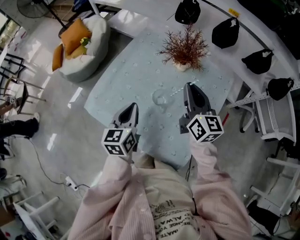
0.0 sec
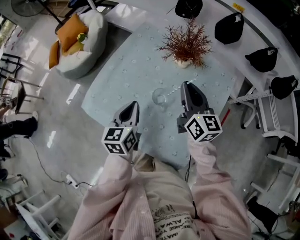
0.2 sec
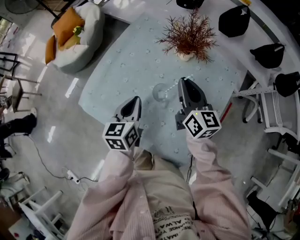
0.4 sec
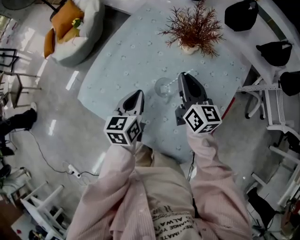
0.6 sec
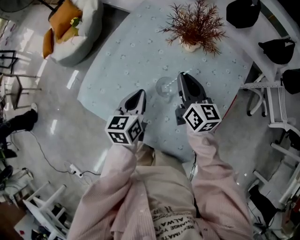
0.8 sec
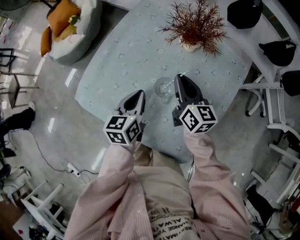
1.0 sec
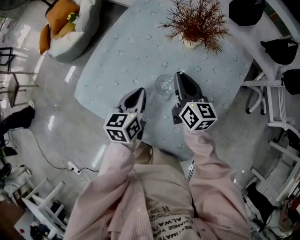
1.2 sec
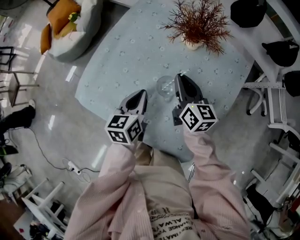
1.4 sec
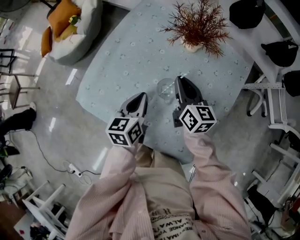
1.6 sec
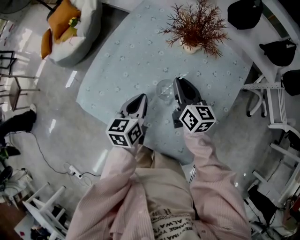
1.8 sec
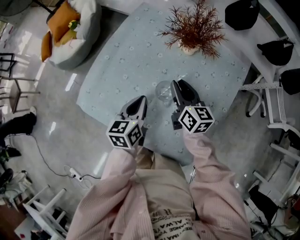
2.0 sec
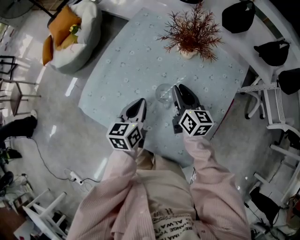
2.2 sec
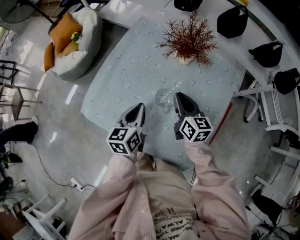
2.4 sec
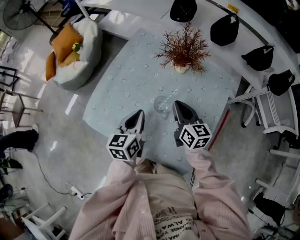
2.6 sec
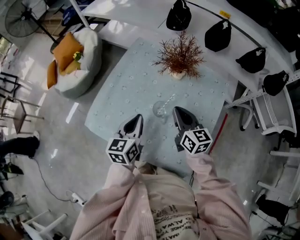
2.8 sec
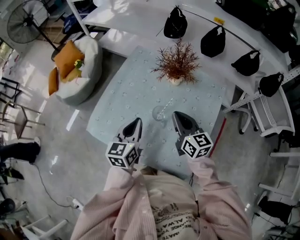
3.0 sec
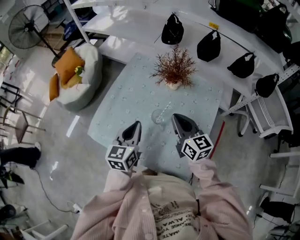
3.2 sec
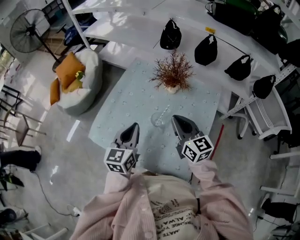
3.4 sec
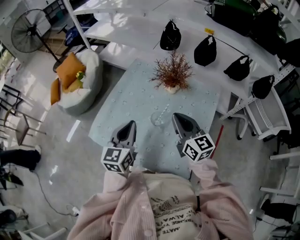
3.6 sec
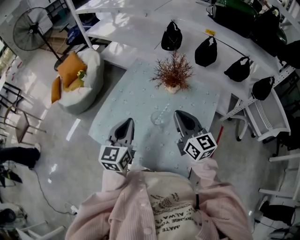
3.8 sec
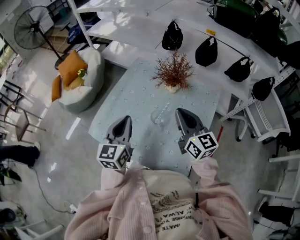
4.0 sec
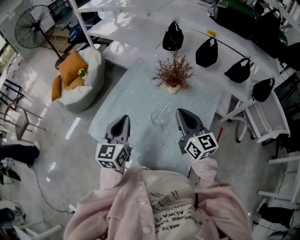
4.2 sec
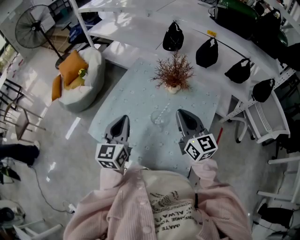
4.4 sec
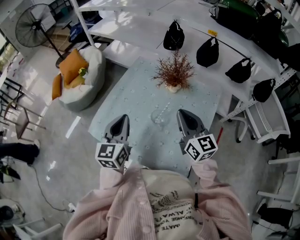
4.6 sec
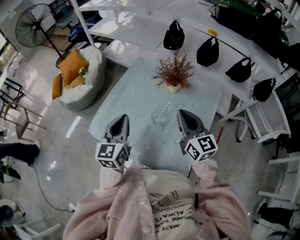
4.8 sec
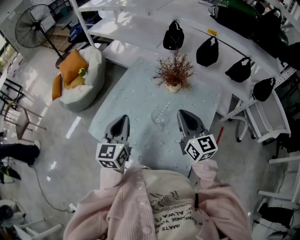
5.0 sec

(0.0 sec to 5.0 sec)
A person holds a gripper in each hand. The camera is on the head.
0.0 sec - 1.6 sec: Both grippers travel together downward, about 15 cm.
1.6 sec - 3.4 sec: The right gripper travels upward and backward by approximately 15 cm. The left gripper travels upward by some 15 cm, and turns by some 20 degrees.
3.4 sec - 5.0 sec: The left gripper changes place by approximately 5 cm.

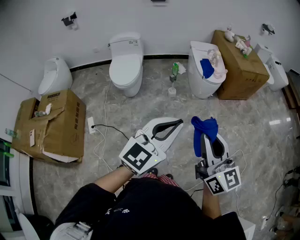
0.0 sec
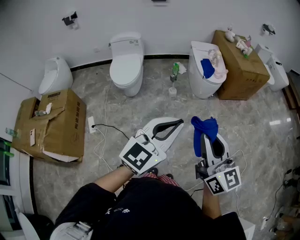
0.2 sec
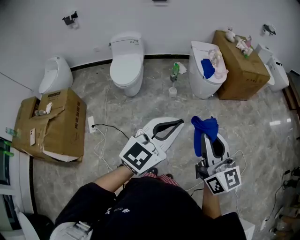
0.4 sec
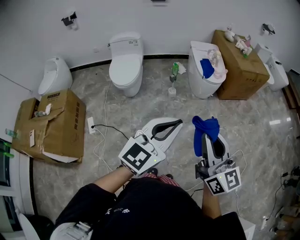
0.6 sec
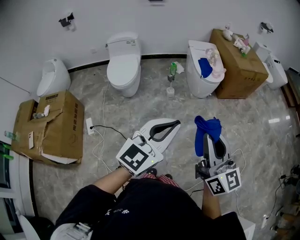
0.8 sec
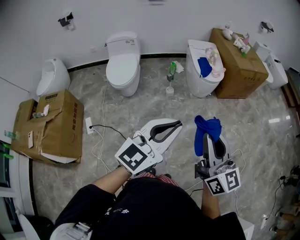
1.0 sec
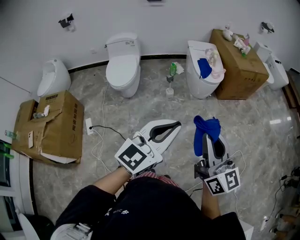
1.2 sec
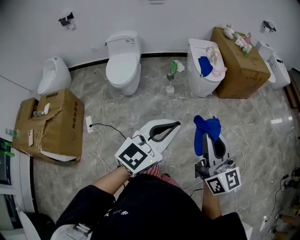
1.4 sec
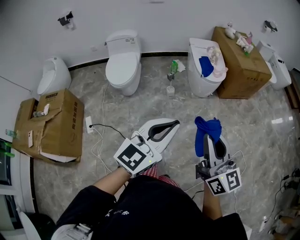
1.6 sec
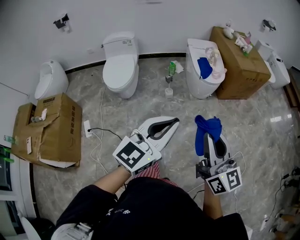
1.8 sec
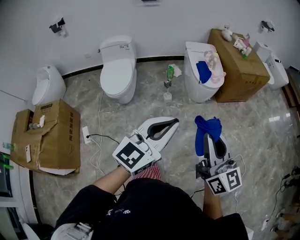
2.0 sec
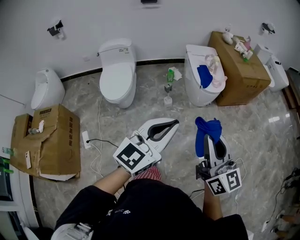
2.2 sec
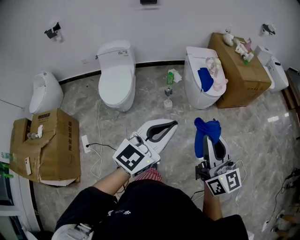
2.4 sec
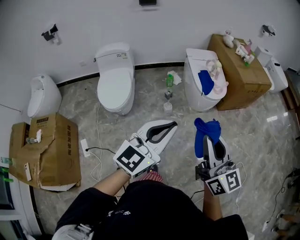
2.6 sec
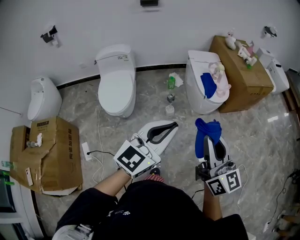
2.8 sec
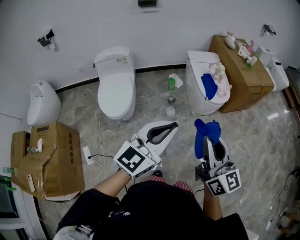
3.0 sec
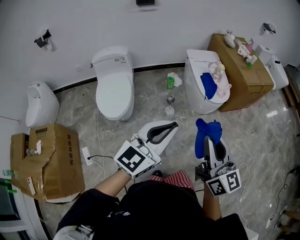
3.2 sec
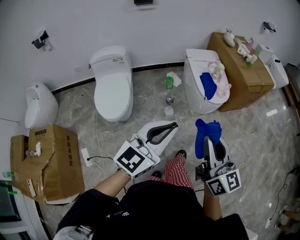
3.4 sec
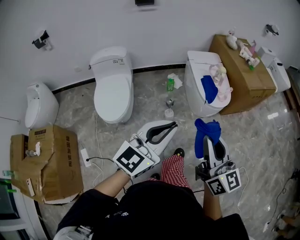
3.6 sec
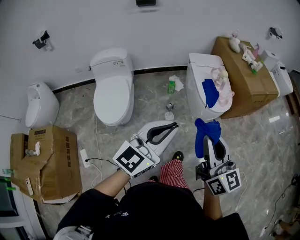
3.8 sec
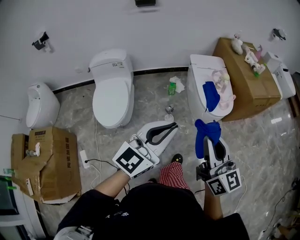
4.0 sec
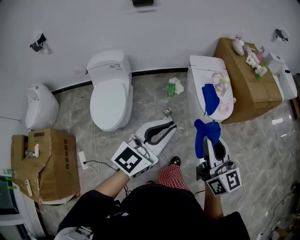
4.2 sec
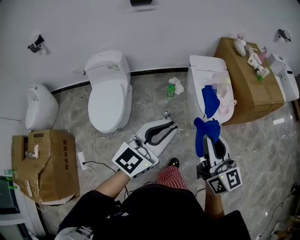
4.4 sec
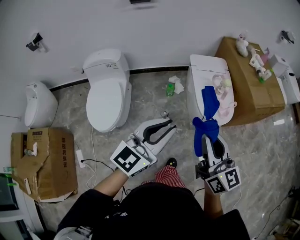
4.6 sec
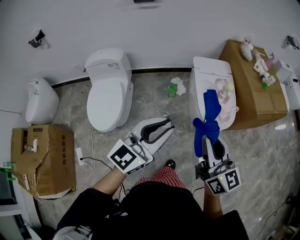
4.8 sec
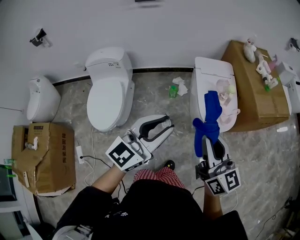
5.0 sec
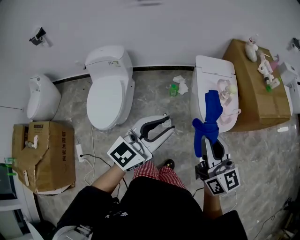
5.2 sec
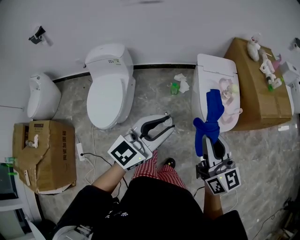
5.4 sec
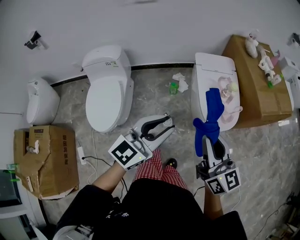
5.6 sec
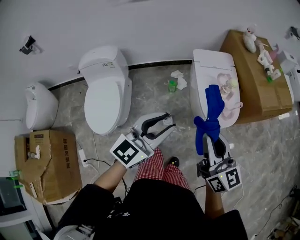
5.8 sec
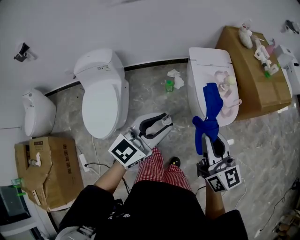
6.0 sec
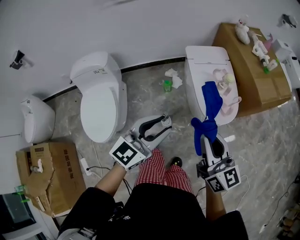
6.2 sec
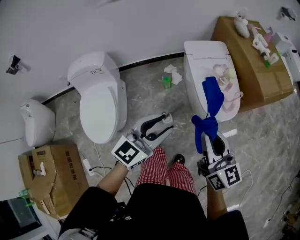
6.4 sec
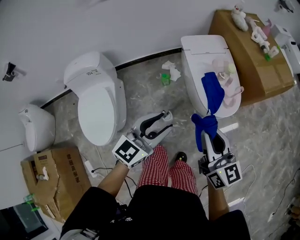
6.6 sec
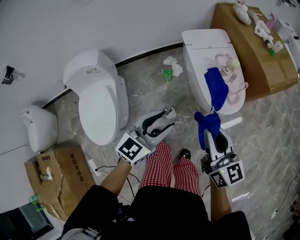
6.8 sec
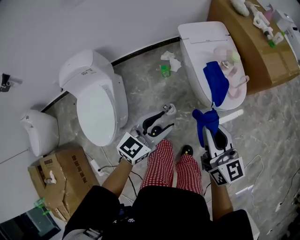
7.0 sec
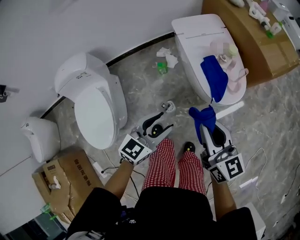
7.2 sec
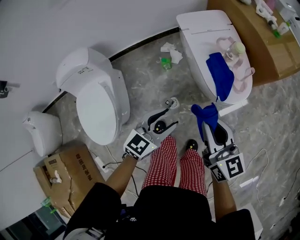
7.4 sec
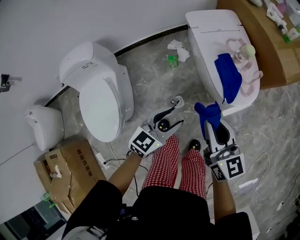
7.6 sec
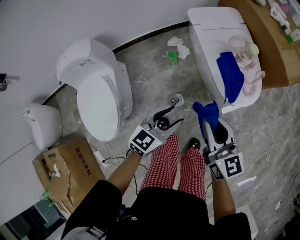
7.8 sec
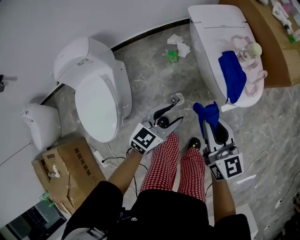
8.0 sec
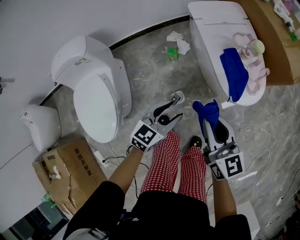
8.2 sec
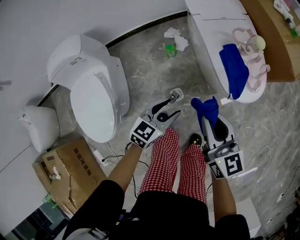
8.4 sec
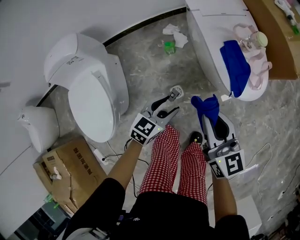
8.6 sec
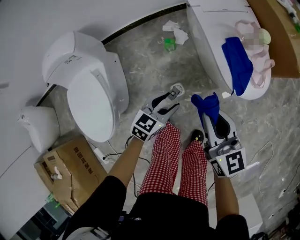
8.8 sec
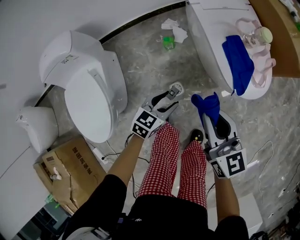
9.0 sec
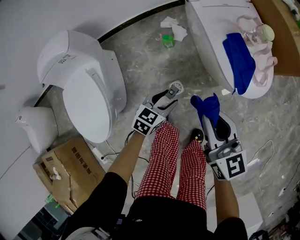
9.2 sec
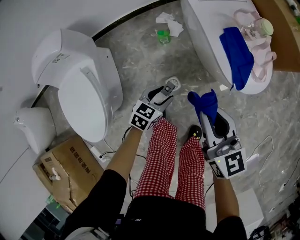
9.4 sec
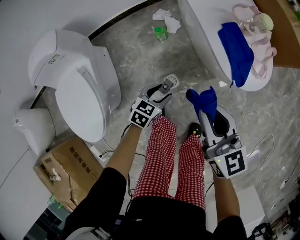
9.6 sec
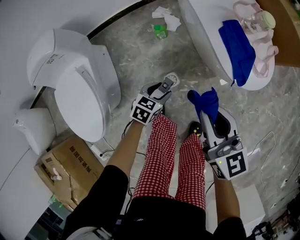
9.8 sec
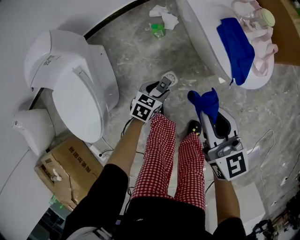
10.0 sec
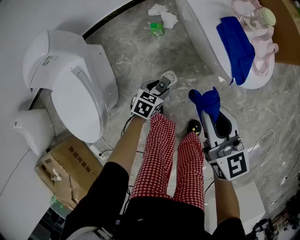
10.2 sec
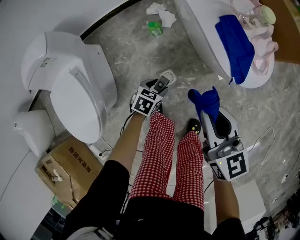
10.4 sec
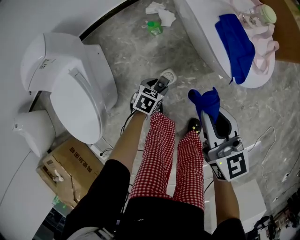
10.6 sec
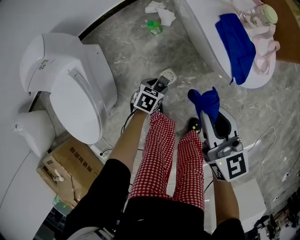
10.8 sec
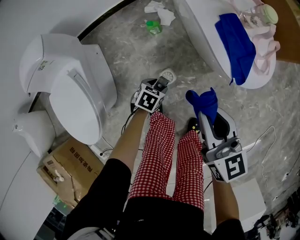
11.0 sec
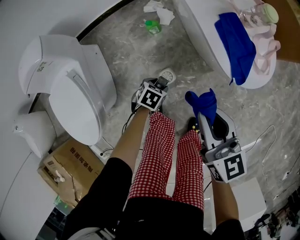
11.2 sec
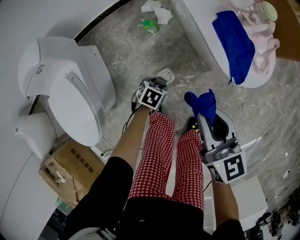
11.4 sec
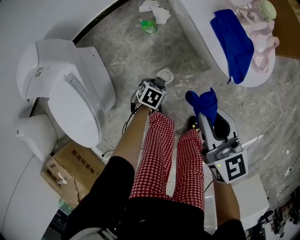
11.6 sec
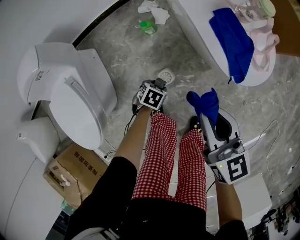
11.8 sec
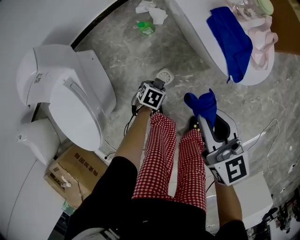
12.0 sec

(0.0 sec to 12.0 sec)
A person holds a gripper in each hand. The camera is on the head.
0.0 sec - 1.6 sec: The right gripper shifts about 5 cm to the right. The left gripper shifts by roughly 5 cm.
1.6 sec - 3.0 sec: The two grippers go about 30 cm forward and to the left.
3.0 sec - 4.4 sec: Both grippers move forward, roughly 25 cm.
4.4 sec - 6.0 sec: The left gripper is displaced forward and downward by about 15 cm, and opens up; the right gripper heads forward, covering roughly 15 cm.
6.0 sec - 7.6 sec: The right gripper travels downward and forward by approximately 15 cm; the left gripper moves downward, roughly 25 cm, and turns by roughly 20 degrees.
7.6 sec - 9.0 sec: The left gripper goes about 20 cm downward; the right gripper goes roughly 10 cm downward.
9.0 sec - 10.4 sec: The right gripper moves about 5 cm; the left gripper is displaced downward by some 15 cm, and rotates about 20 degrees.
10.4 sec - 12.0 sec: The left gripper is displaced downward by about 5 cm.

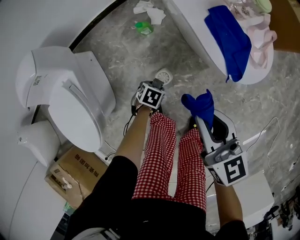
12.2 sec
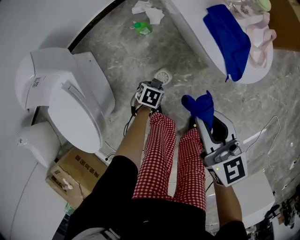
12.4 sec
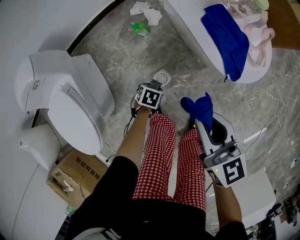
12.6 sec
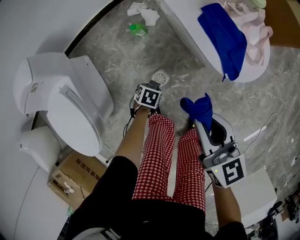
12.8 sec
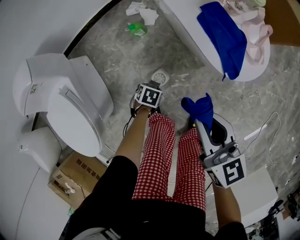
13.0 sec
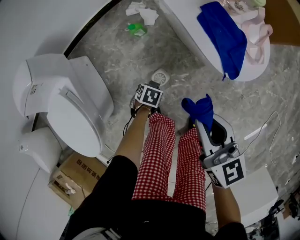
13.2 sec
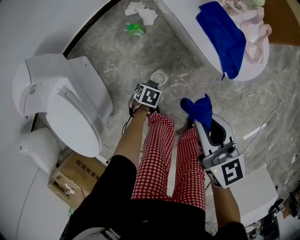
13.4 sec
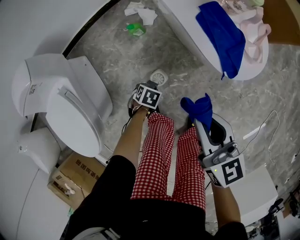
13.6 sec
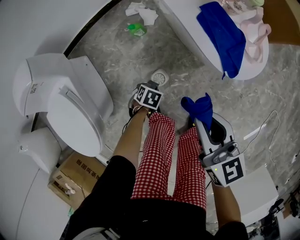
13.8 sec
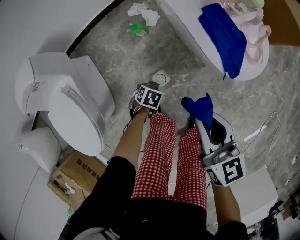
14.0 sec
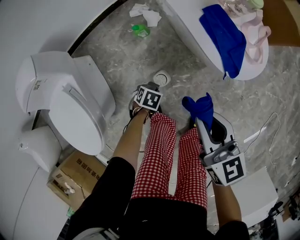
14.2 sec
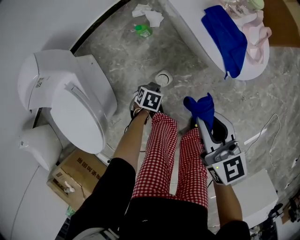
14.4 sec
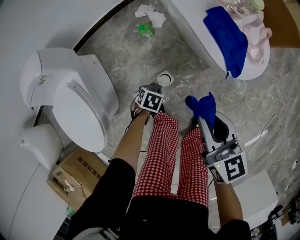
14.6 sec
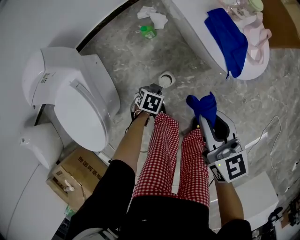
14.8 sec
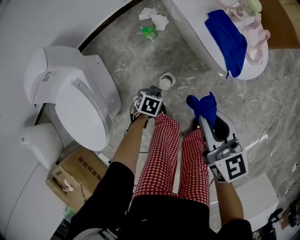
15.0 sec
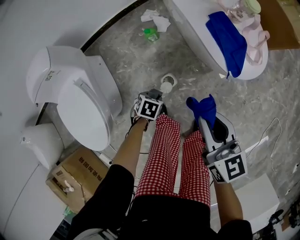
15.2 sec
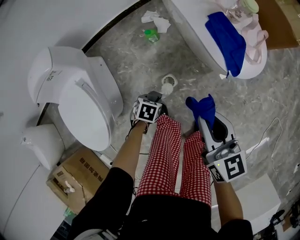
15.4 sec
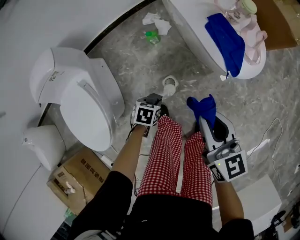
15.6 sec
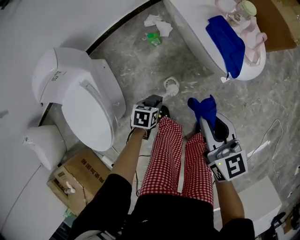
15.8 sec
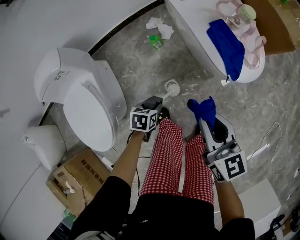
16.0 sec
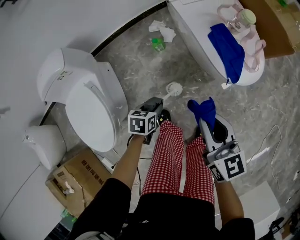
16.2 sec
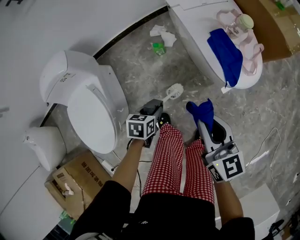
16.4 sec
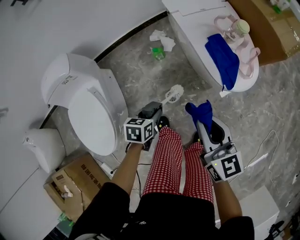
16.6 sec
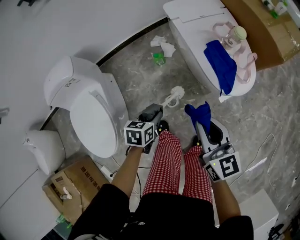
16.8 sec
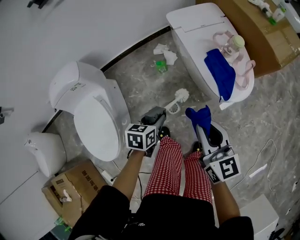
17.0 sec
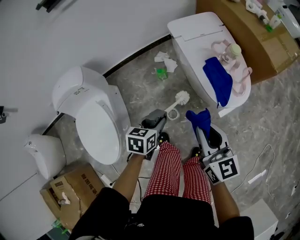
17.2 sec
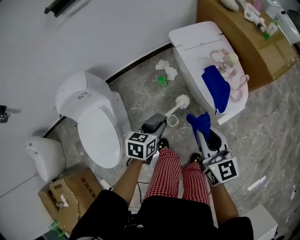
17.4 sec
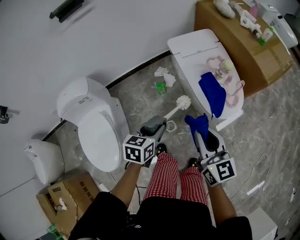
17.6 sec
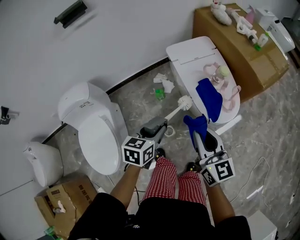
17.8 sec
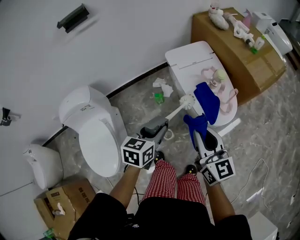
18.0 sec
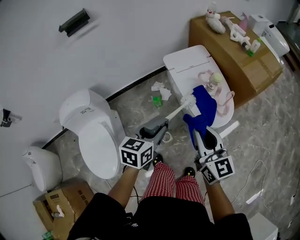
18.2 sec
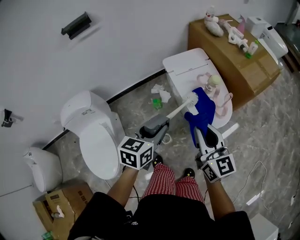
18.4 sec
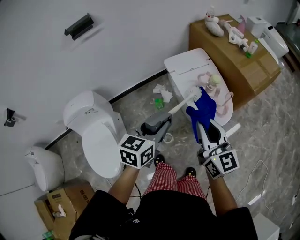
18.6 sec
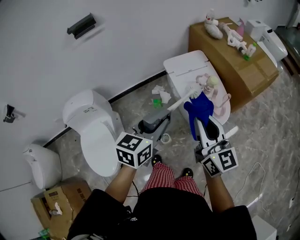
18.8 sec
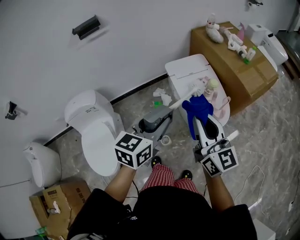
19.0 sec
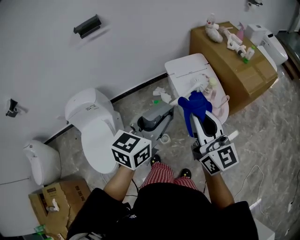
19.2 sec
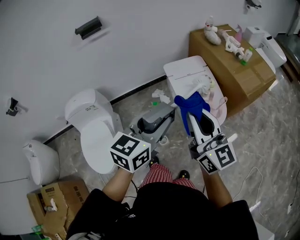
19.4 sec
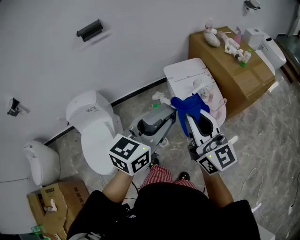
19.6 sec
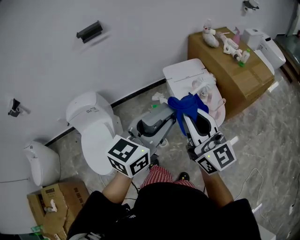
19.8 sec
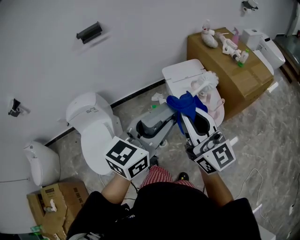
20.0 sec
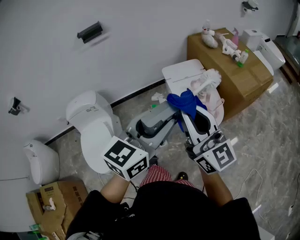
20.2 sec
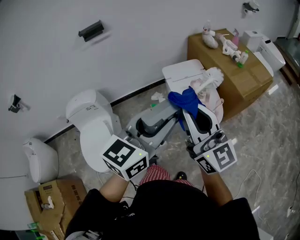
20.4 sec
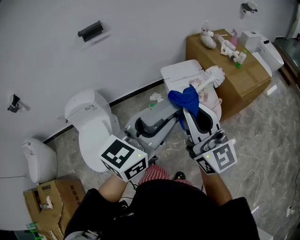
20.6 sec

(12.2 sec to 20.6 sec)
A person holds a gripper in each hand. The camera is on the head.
12.2 sec - 13.6 sec: The grippers stay close to where they were, moving slightly.
13.6 sec - 15.0 sec: The left gripper goes approximately 5 cm upward.
15.0 sec - 16.4 sec: The right gripper shifts roughly 5 cm upward; the left gripper shifts approximately 15 cm upward, and swivels roughly 30 degrees.
16.4 sec - 17.8 sec: The right gripper travels upward by approximately 15 cm; the left gripper goes about 25 cm upward, and rotates about 20 degrees.
17.8 sec - 19.2 sec: The two grippers go about 20 cm upward. The left gripper rotates approximately 20 degrees.
19.2 sec - 20.6 sec: The right gripper is displaced upward and backward by about 10 cm. Meanwhile the left gripper is displaced upward, backward and to the right by some 15 cm.
